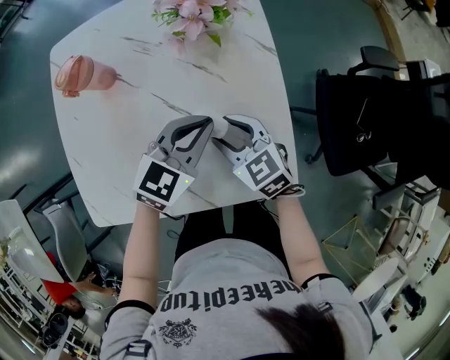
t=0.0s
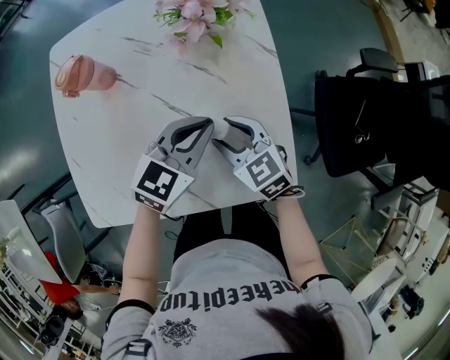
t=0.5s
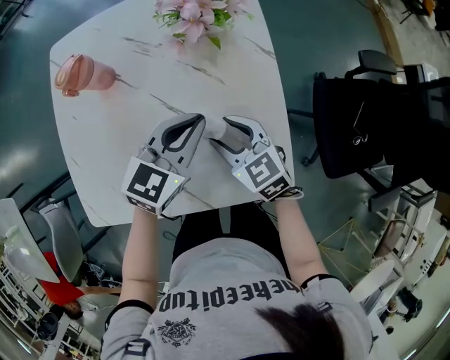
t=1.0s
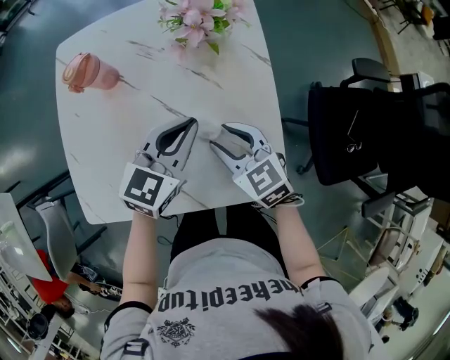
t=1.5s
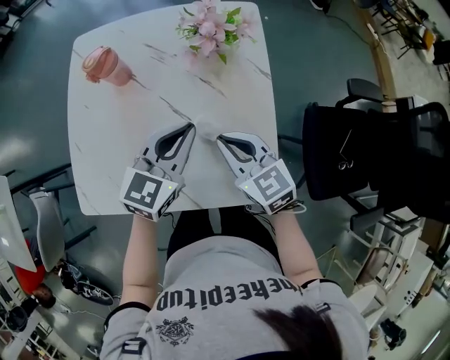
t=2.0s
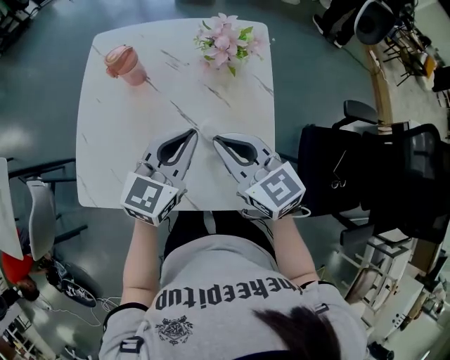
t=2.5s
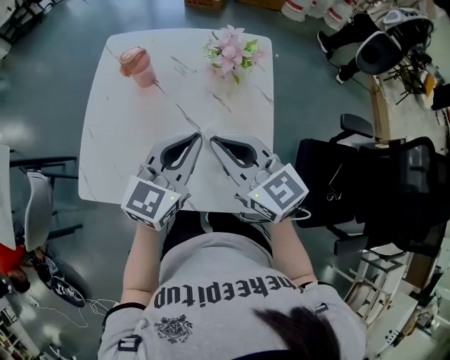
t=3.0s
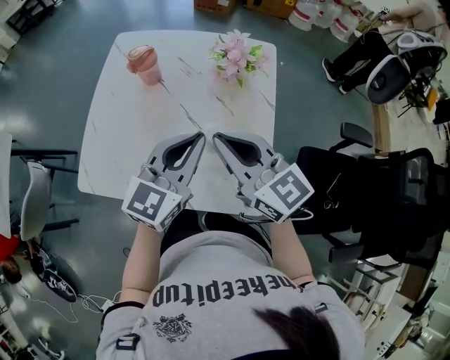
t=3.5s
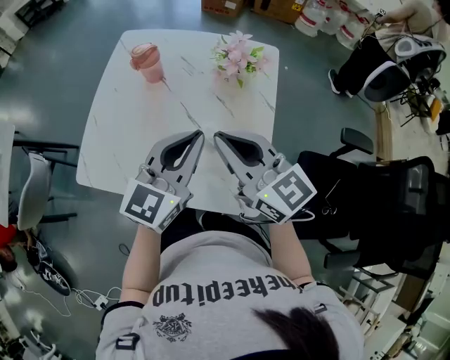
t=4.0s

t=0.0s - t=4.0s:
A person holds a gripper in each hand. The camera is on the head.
t=0.0s - t=2.0s: The two grippers go some 10 cm upward. The right gripper closes up.
t=2.0s - t=4.0s: The right gripper heads upward, covering some 15 cm, and rotates roughly 30 degrees; the left gripper heads upward and backward, covering approximately 15 cm, and rotates about 20 degrees.

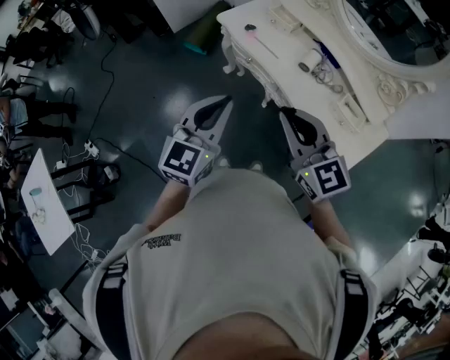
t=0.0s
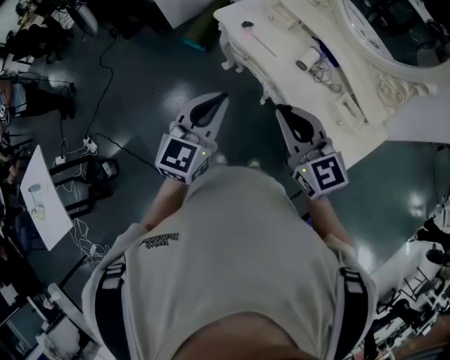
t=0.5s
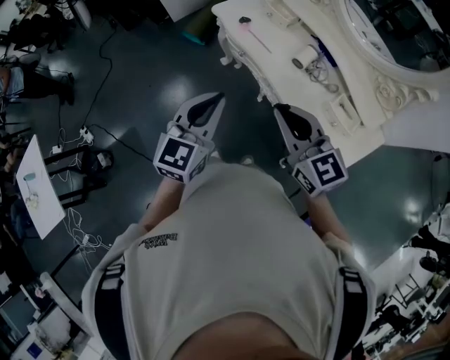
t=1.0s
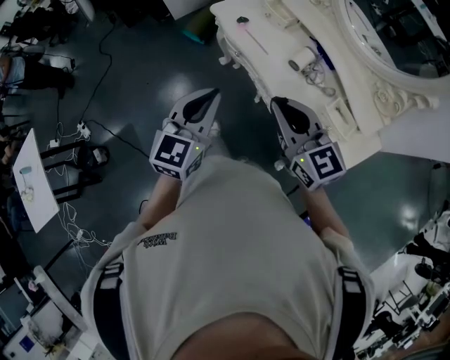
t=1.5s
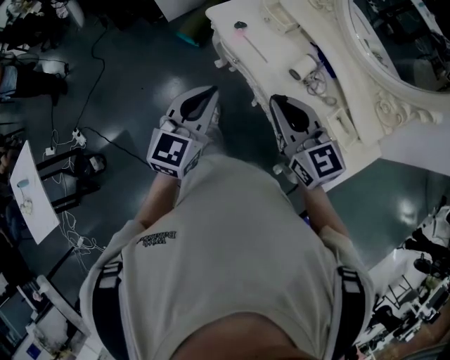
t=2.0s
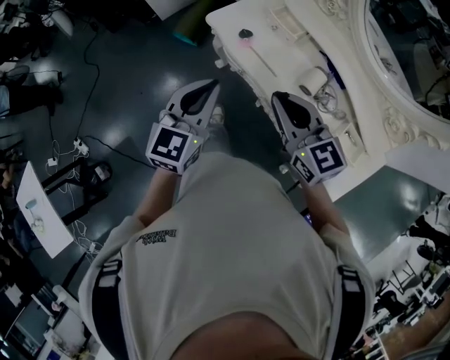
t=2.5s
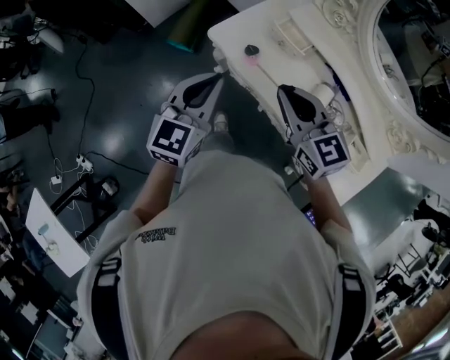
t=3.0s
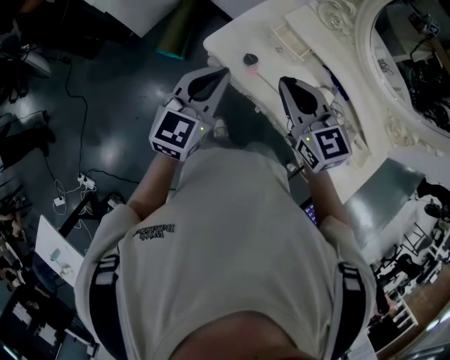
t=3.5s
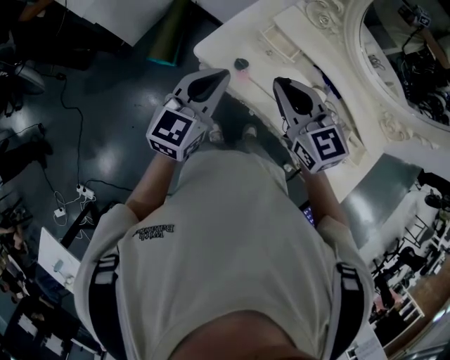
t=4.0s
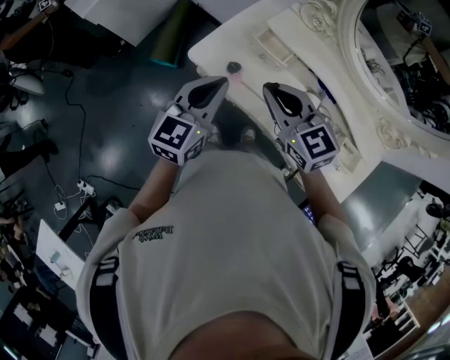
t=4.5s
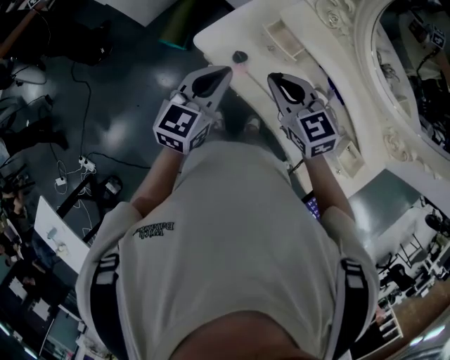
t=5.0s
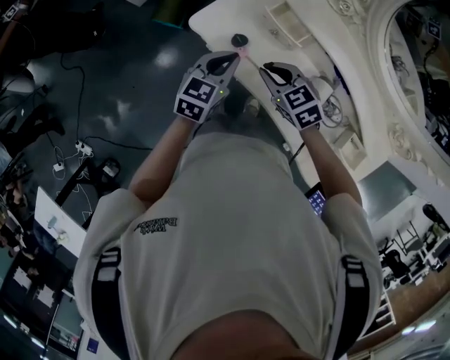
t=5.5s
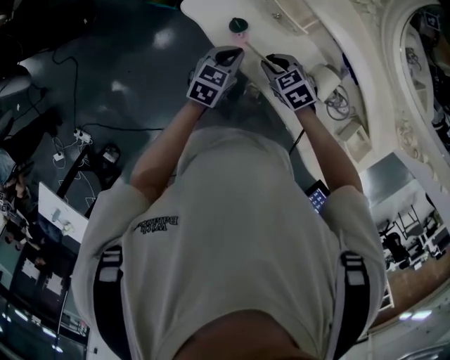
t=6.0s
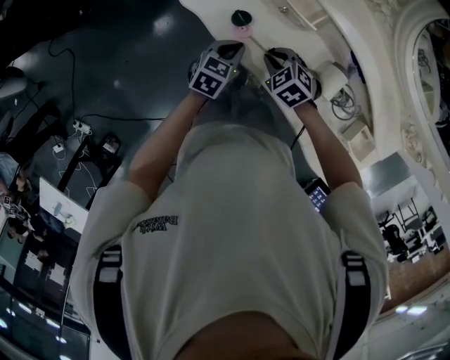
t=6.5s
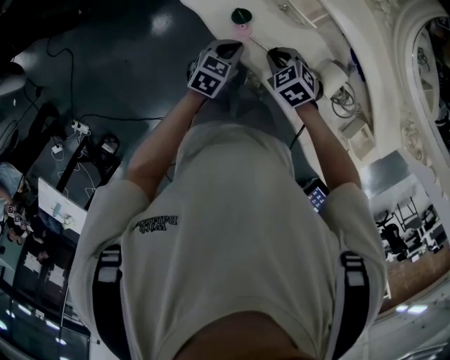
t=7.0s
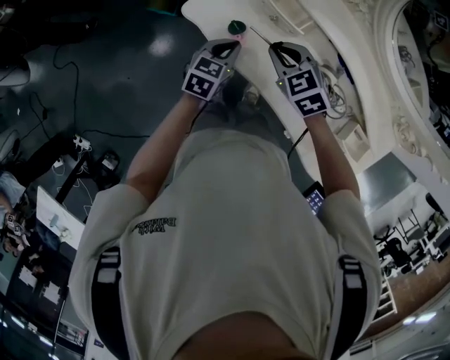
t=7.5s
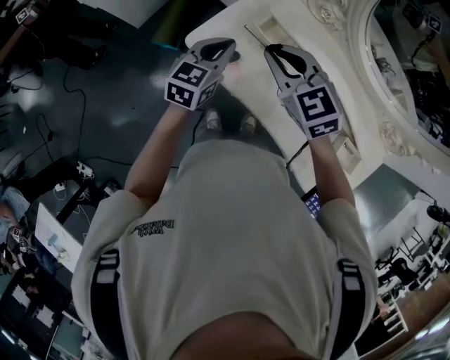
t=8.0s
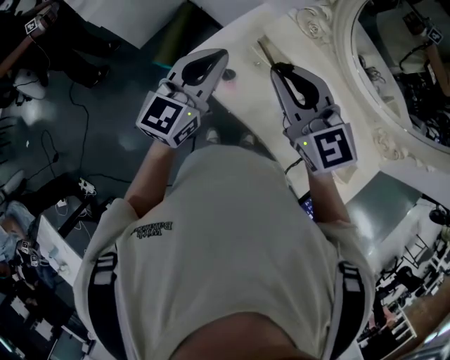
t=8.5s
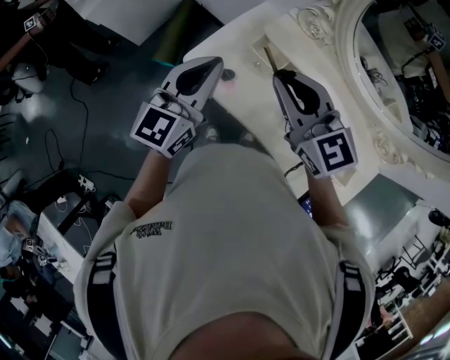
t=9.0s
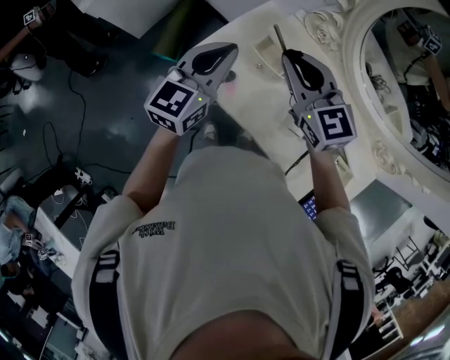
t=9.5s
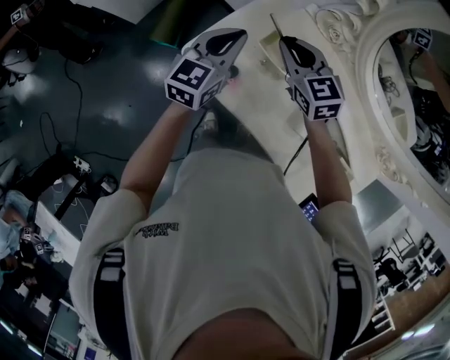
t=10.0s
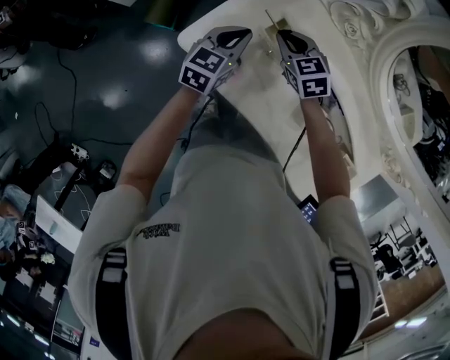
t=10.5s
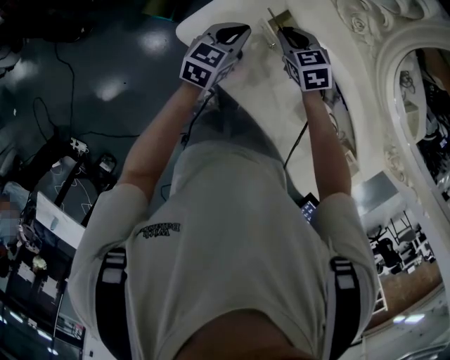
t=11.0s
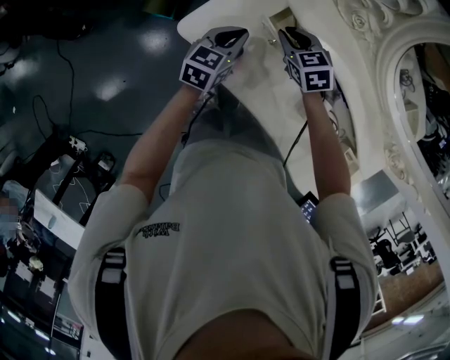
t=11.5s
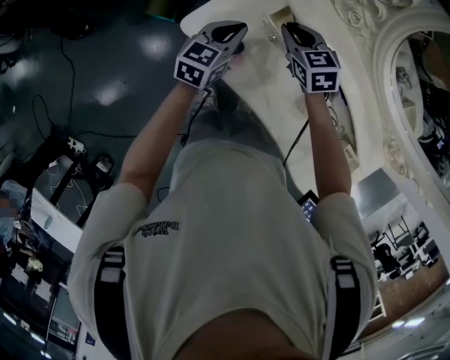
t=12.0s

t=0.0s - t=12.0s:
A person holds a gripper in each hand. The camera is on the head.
t=0.0s - t=2.0s: The left gripper goes about 10 cm forward. The right gripper heads forward, to the right and downward, covering some 15 cm.
t=2.0s - t=4.0s: The grippers both shift forward by roughly 30 cm. The left gripper swivels about 20 degrees.
t=4.0s - t=6.0s: The two grippers go roughly 30 cm downward. The right gripper angles its fingers downward, by approximately 40 degrees. The left gripper changes its angle by some 30 degrees.
t=6.0s - t=8.0s: The left gripper travels upward by approximately 20 cm. Meanwhile the right gripper goes about 30 cm upward, and rotates some 30 degrees.
t=8.0s - t=10.0s: The right gripper shifts about 15 cm forward and downward; the left gripper shifts about 10 cm forward, and travels upward and back again, about 15 cm each way.
t=10.0s - t=12.0s: Both grippers move downward, about 10 cm.

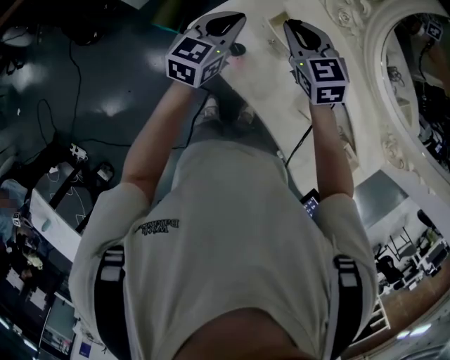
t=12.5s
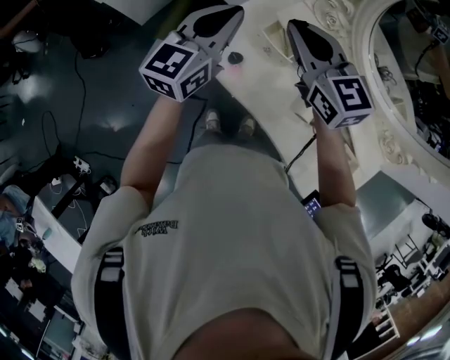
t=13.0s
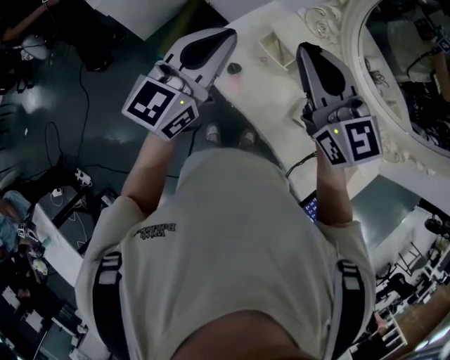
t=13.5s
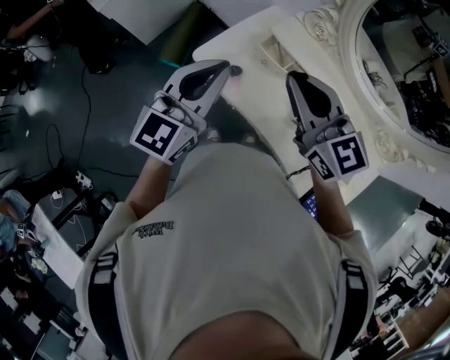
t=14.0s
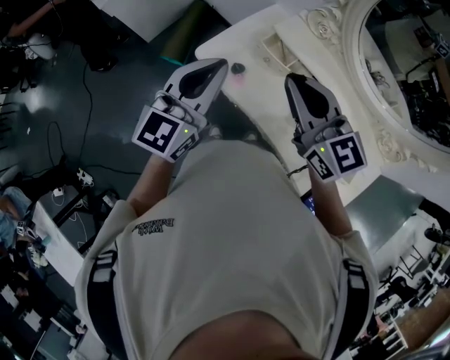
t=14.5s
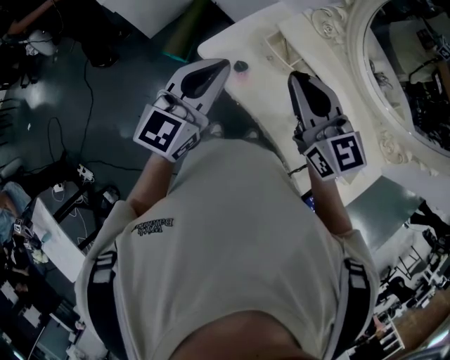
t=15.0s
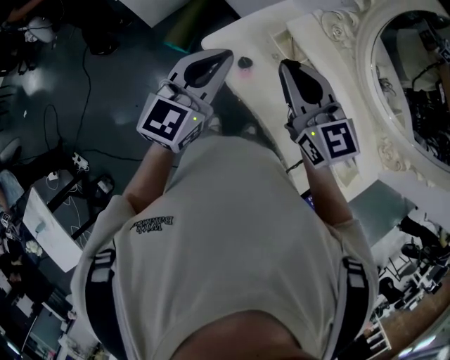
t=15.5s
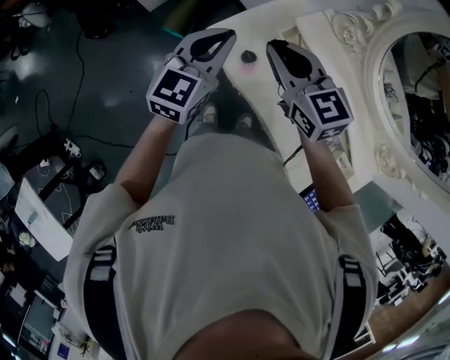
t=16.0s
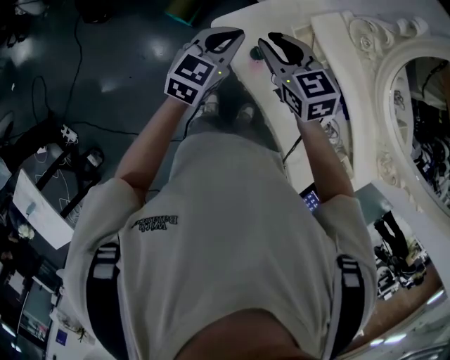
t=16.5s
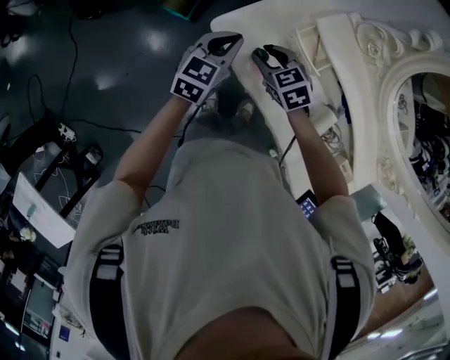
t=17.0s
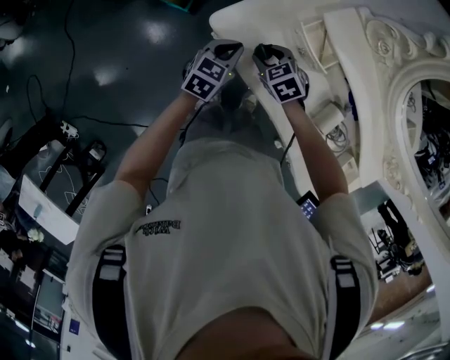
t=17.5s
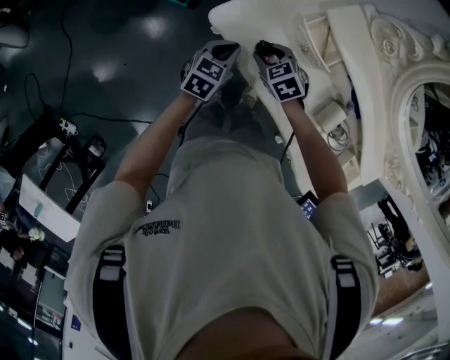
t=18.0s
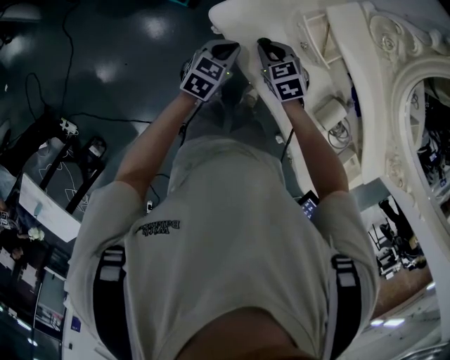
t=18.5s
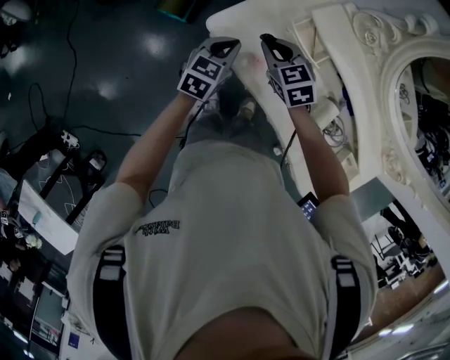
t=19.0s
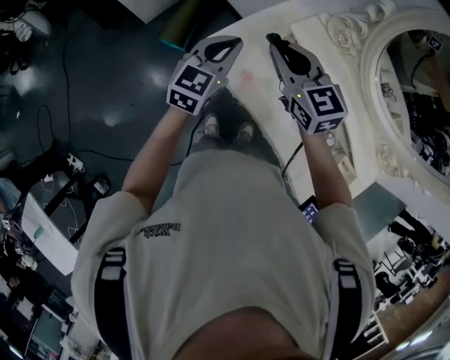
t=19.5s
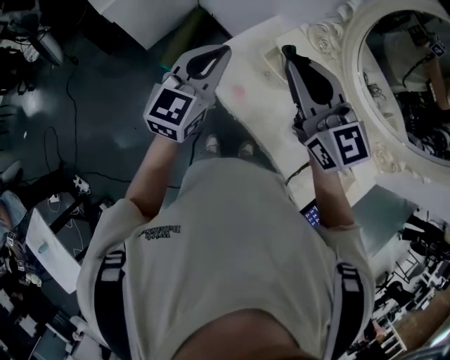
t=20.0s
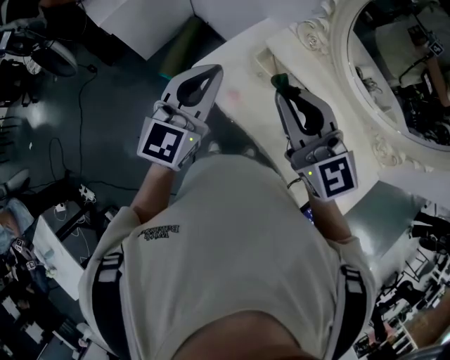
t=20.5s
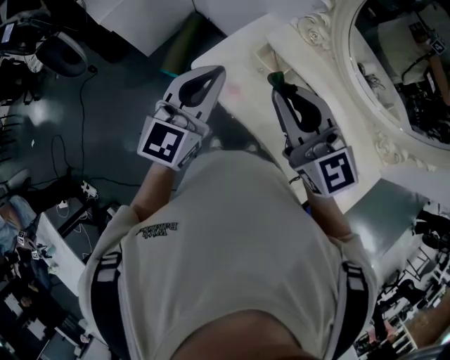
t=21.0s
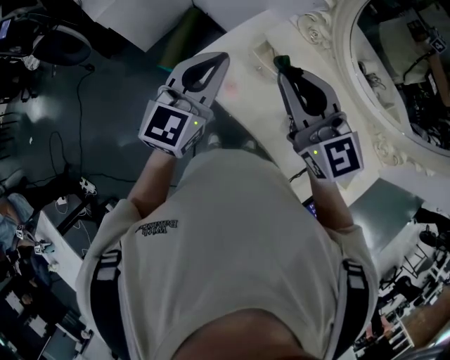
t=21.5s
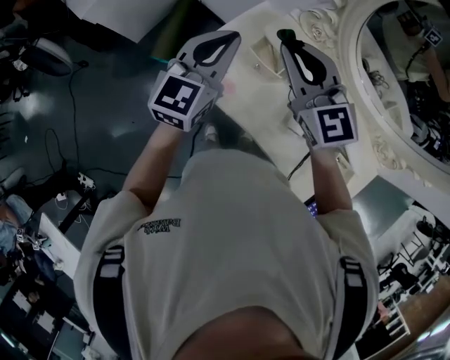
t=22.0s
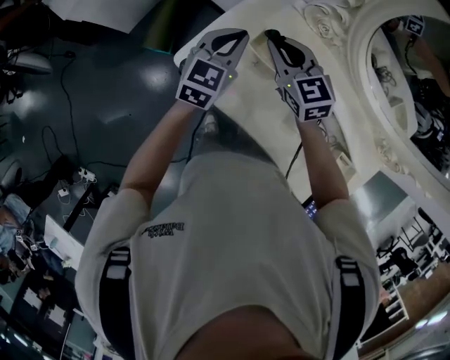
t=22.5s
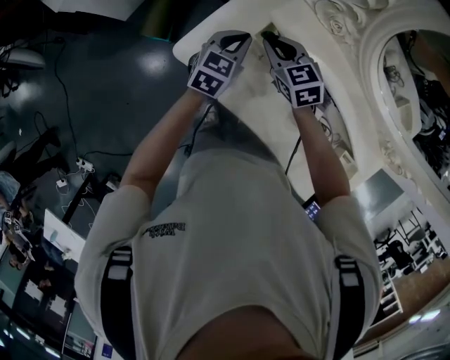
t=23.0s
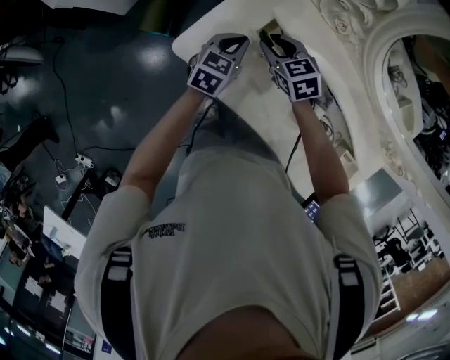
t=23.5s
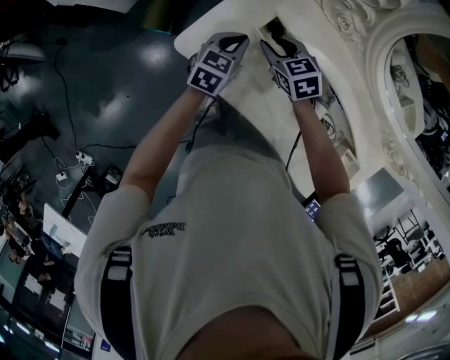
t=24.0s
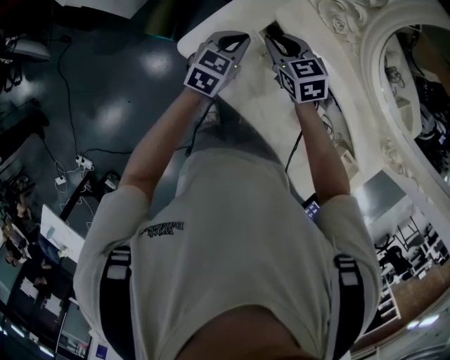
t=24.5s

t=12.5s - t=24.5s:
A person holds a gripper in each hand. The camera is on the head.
t=12.5s - t=14.5s: The right gripper heads backward and upward, covering roughly 25 cm, and turns by about 20 degrees. Meanwhile the left gripper shifts about 25 cm upward and backward.
t=14.5s - t=16.5s: The right gripper is displaced downward, forward and to the left by approximately 25 cm, rotates about 30 degrees, and opens its fingers, while the left gripper shifts some 20 cm downward and forward, and swivels roughly 20 degrees.
t=16.5s - t=18.5s: Both grippers travel together downward, roughly 20 cm. The left gripper rotates about 20 degrees, while the right gripper rotates approximately 20 degrees.
t=18.5s - t=20.5s: The two grippers go approximately 40 cm upward. The right gripper tips its fingers upward by some 50 degrees. The left gripper points its fingers roughly 40 degrees further upward.
t=20.5s - t=22.5s: The left gripper goes some 25 cm downward and forward, and rotates some 20 degrees; the right gripper travels forward and downward by about 30 cm, and swivels roughly 30 degrees.
t=22.5s - t=24.5s: The grippers both shift downward by approximately 10 cm.
